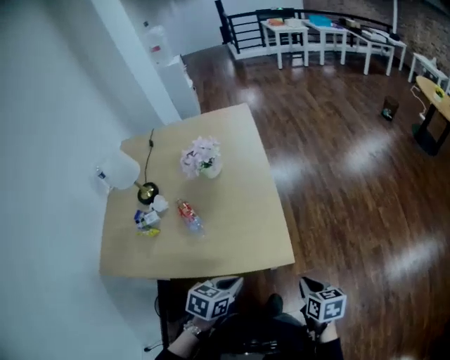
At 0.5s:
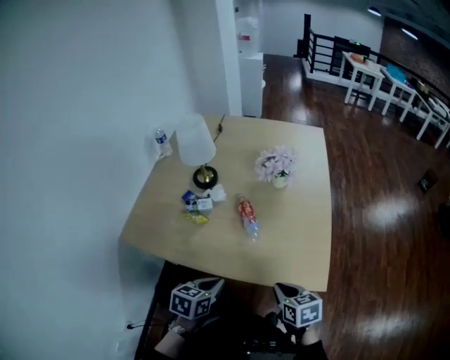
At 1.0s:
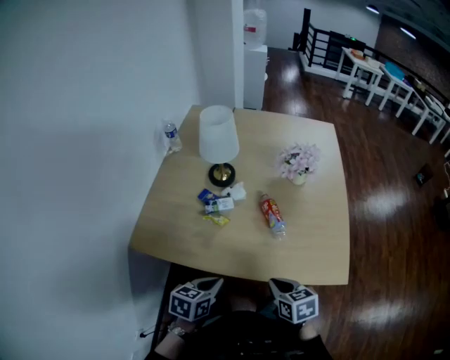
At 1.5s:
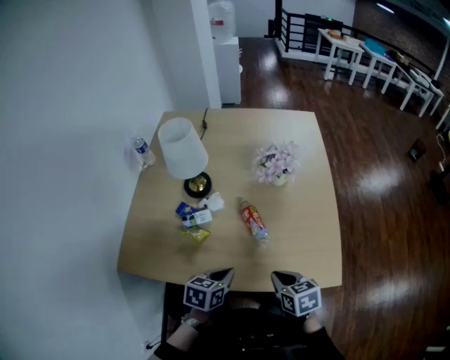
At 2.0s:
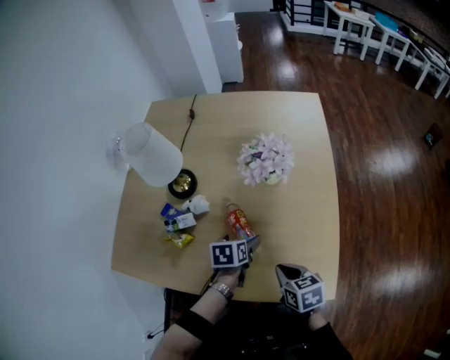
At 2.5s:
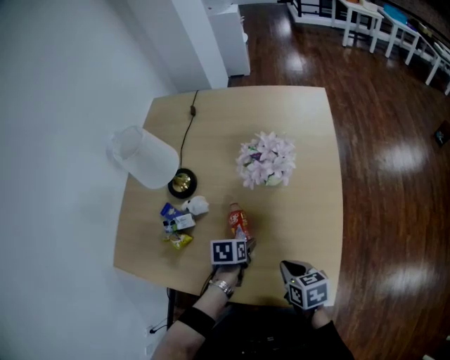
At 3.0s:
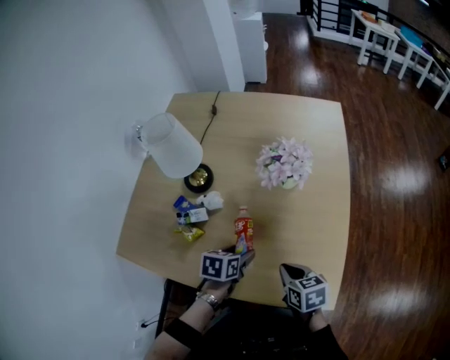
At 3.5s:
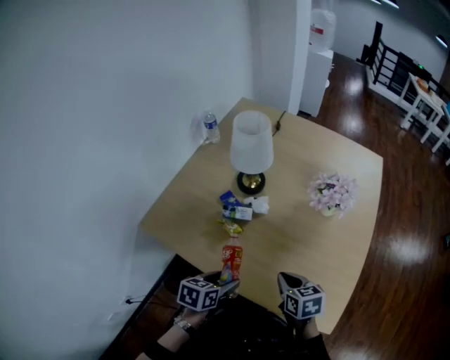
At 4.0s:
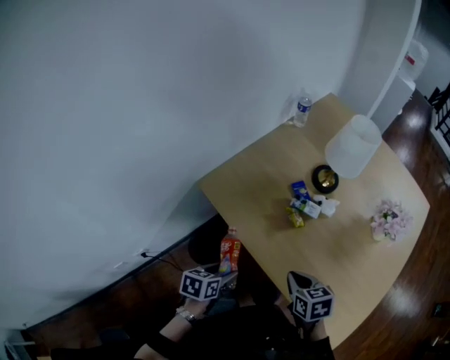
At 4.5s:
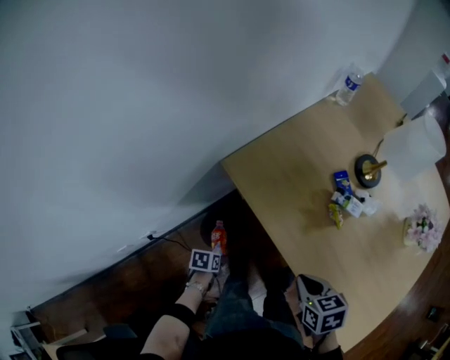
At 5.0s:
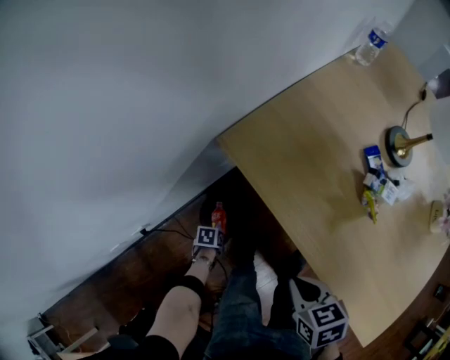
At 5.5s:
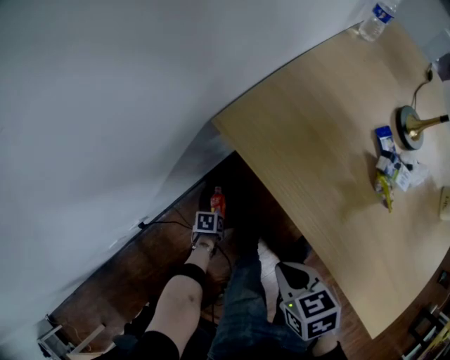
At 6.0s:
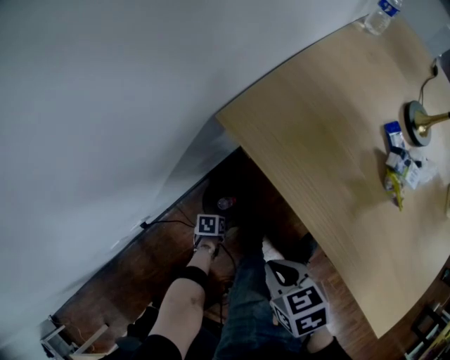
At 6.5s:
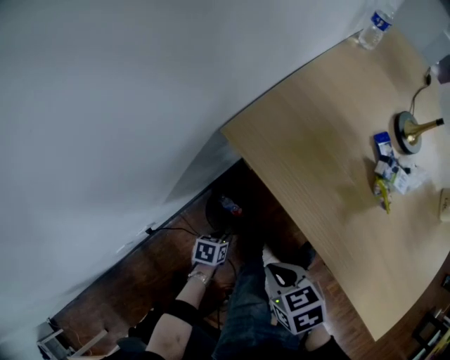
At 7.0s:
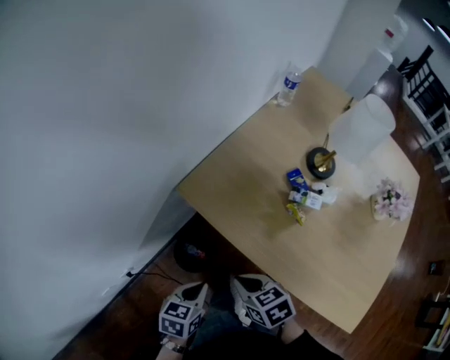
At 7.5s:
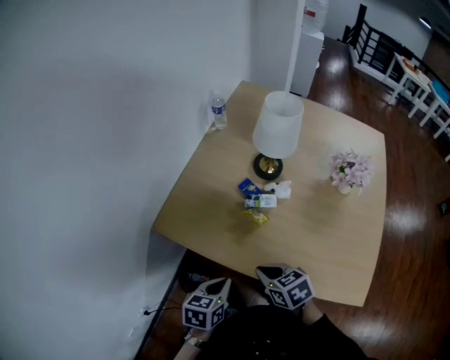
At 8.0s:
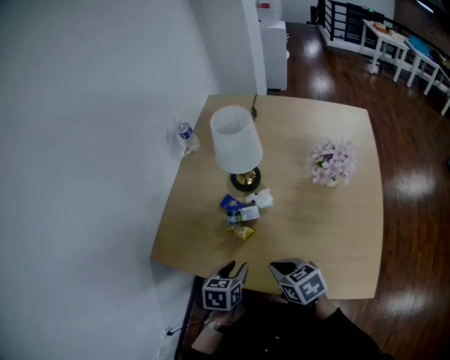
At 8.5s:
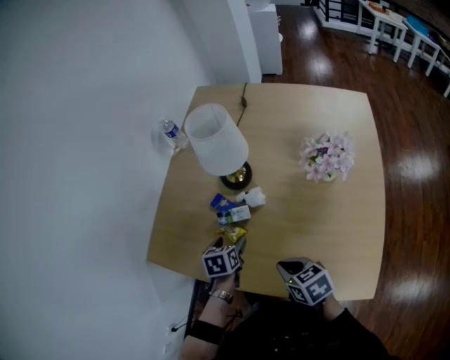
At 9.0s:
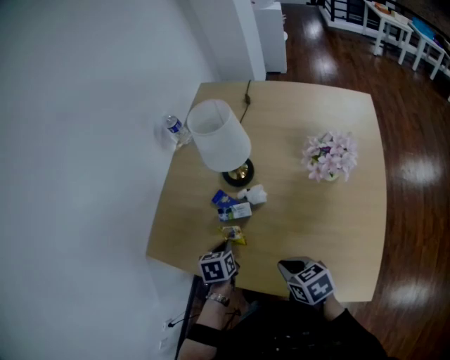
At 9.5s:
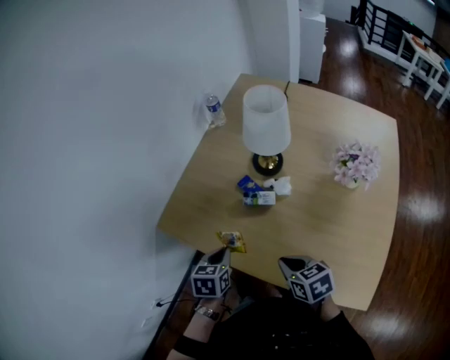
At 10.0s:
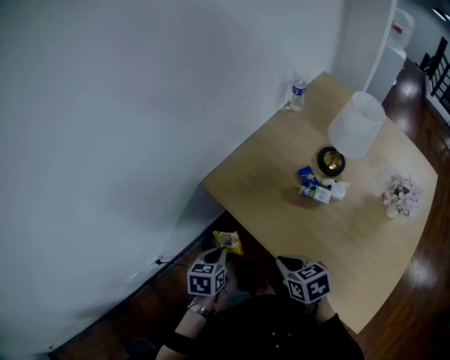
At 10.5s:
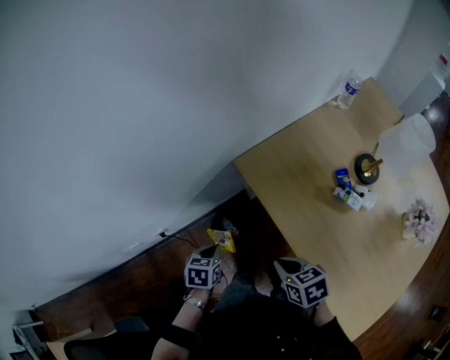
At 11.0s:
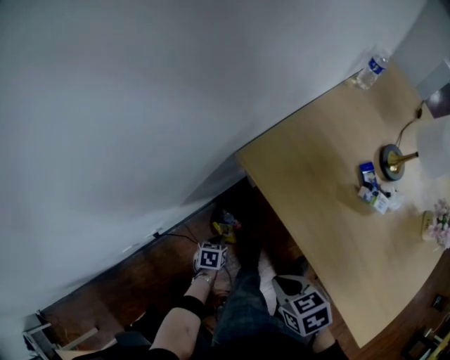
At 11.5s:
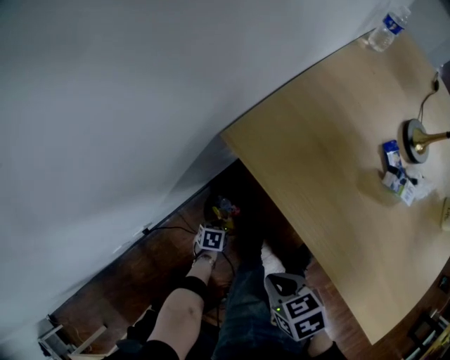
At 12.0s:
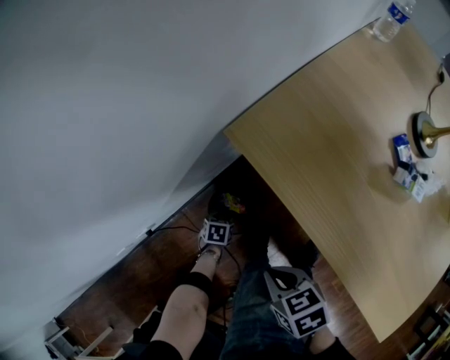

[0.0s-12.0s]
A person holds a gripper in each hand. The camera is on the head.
0.0s to 2.0s: The right gripper moves some 35 cm, and swivels roughly 30 degrees. Meanwhile the left gripper changes place by some 35 cm, changes its angle by some 40 degrees, and opens its fingers.
2.0s to 4.0s: The right gripper changes place by approximately 25 cm, and changes its angle by about 40 degrees. Meanwhile the left gripper swings up and down, some 10 cm each way, with 2 reversals, and rotates some 30 degrees.
4.0s to 6.0s: The left gripper is displaced downward by about 50 cm, and turns by about 30 degrees; the right gripper ends up approximately 30 cm from where it was, and rotates about 20 degrees.
6.0s to 8.0s: The left gripper travels upward by about 50 cm, rotates around the line of its fingers by approximately 40 degrees, clockwise from behind, and closes its fingers. Meanwhile the right gripper shifts by approximately 35 cm, and changes its angle by about 30 degrees.
8.0s to 10.0s: The right gripper shifts by some 15 cm, and rotates approximately 20 degrees; the left gripper changes place by about 25 cm, swivels about 30 degrees, and opens and closes again.
10.0s to 12.0s: The right gripper travels downward by approximately 15 cm, and rotates approximately 20 degrees; the left gripper goes some 40 cm downward, and changes its angle by approximately 30 degrees.

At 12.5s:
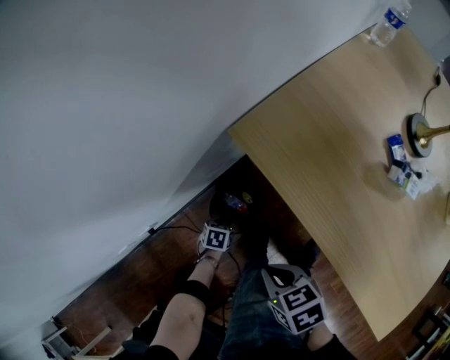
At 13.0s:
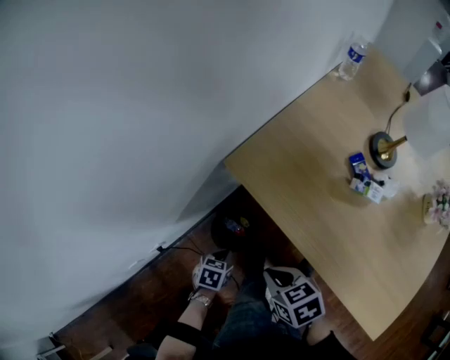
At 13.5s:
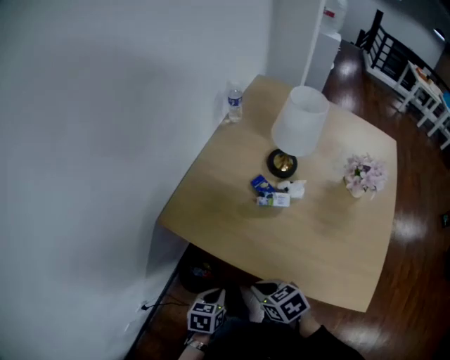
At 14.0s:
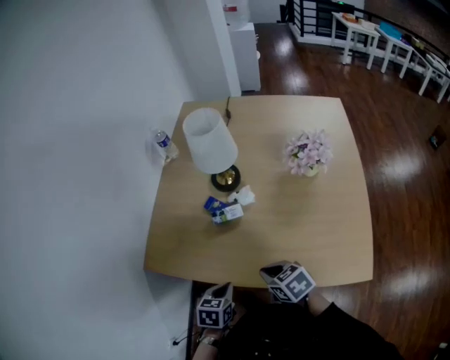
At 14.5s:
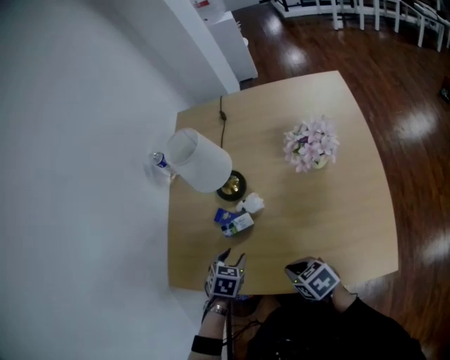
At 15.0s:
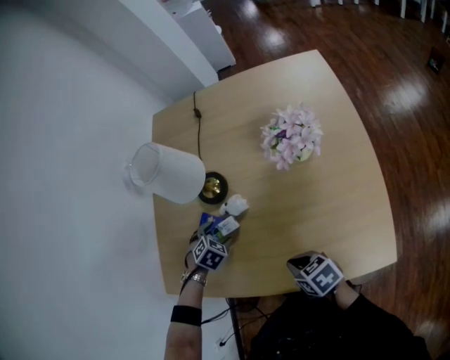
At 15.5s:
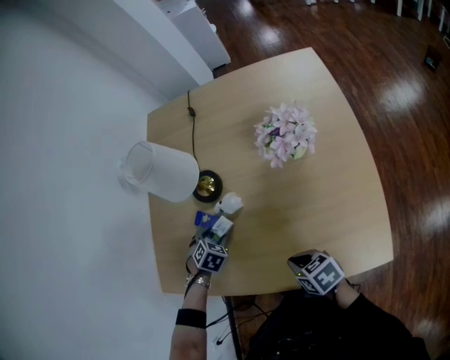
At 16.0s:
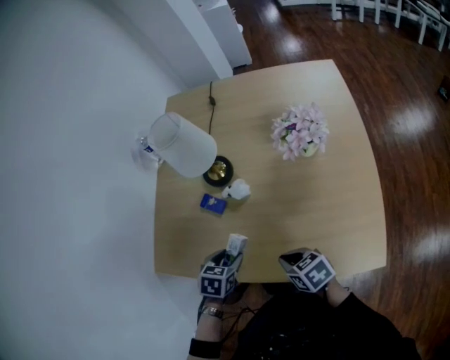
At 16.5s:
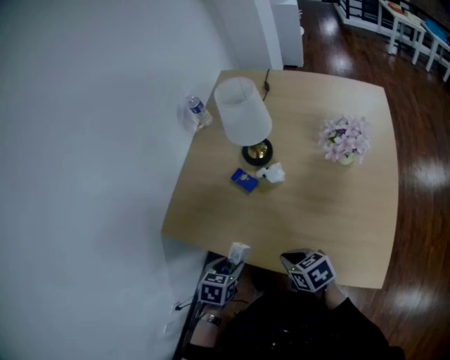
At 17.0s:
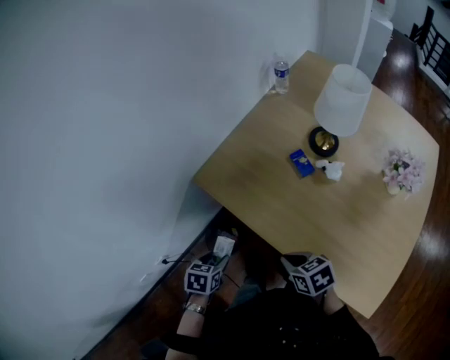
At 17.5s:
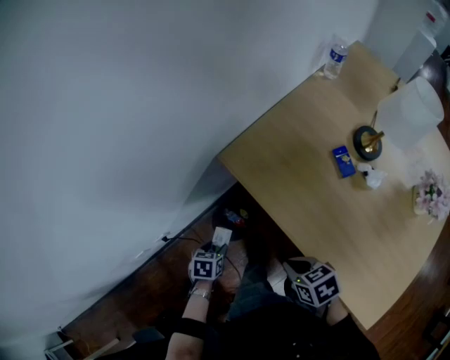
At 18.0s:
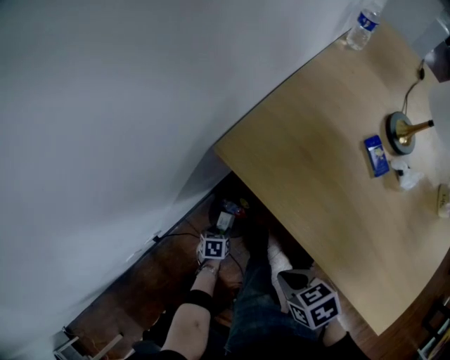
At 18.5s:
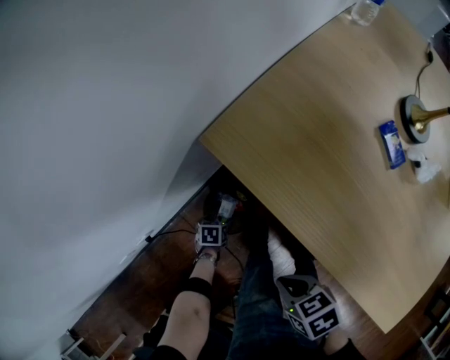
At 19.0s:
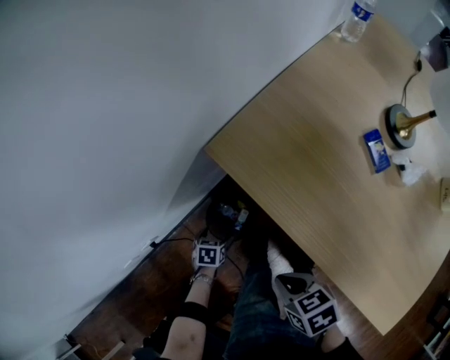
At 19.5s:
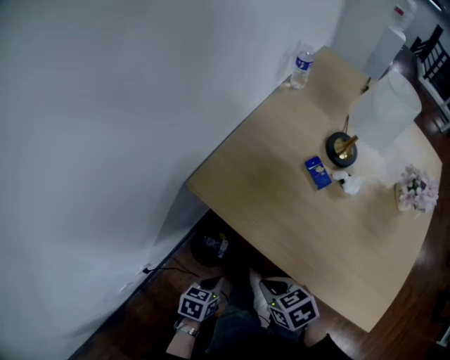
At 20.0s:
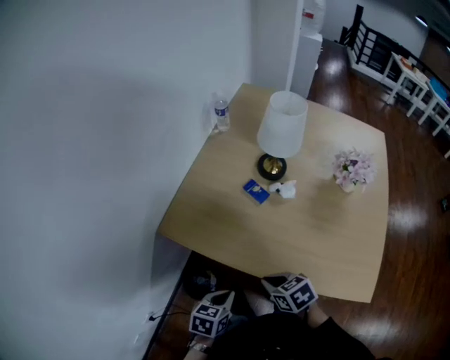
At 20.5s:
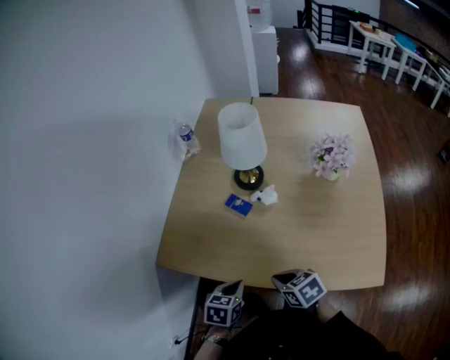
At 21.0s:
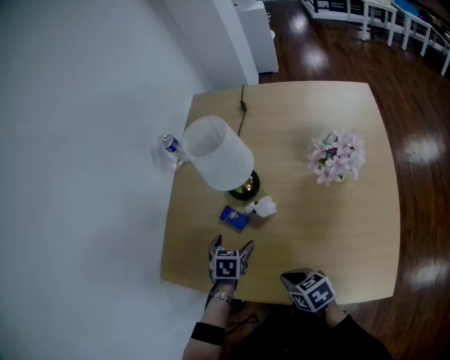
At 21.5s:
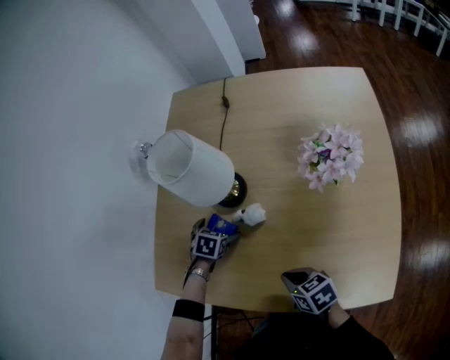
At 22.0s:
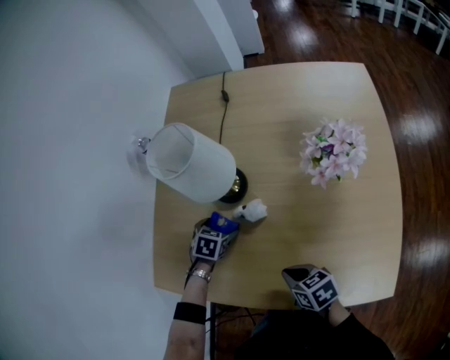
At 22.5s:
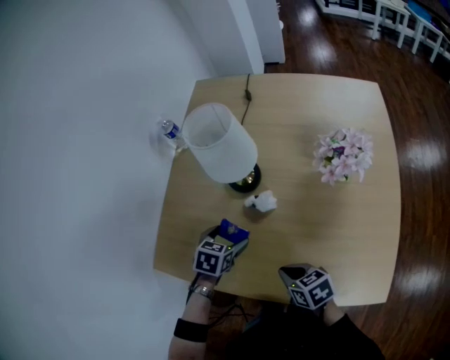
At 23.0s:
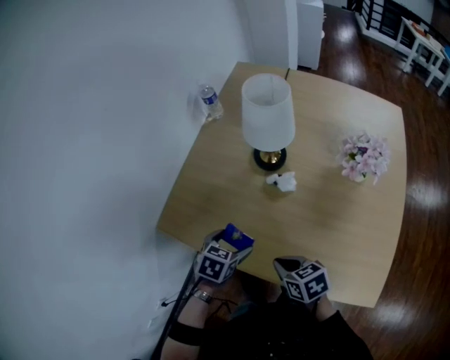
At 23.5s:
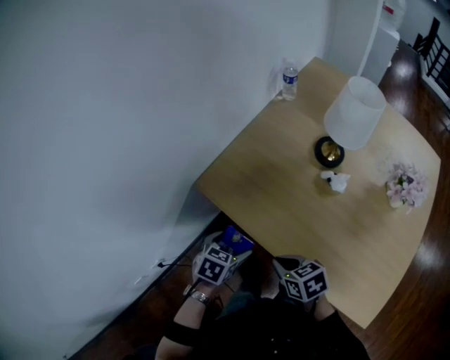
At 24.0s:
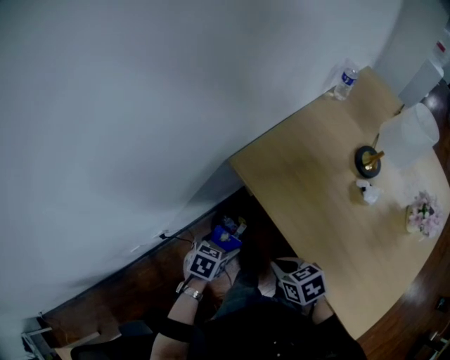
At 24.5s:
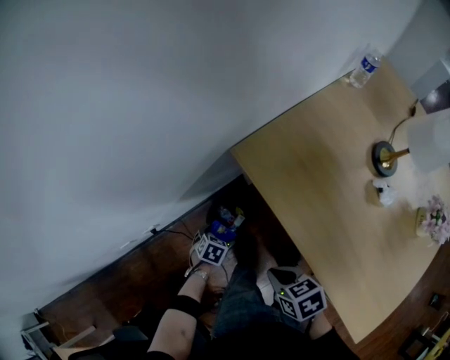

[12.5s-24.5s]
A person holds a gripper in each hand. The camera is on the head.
12.5s to 14.5s: The right gripper moves roughly 35 cm, and changes its angle by some 40 degrees; the left gripper changes place by approximately 60 cm, and rolls clockwise, seen from behind, by approximately 60 degrees.
14.5s to 16.5s: The left gripper heads backward and to the left, covering roughly 15 cm, and swivels roughly 30 degrees. The right gripper shifts by approximately 5 cm.
16.5s to 18.5s: The left gripper shifts roughly 40 cm downward, and twists some 40 degrees counterclockwise, seen from behind, while the right gripper ends up roughly 30 cm from where it was, and turns by roughly 40 degrees.
18.5s to 20.5s: The left gripper shifts about 40 cm upward, rotates around the line of its fingers by about 40 degrees, clockwise from behind, and closes its fingers; the right gripper shifts by roughly 25 cm, and swivels roughly 40 degrees.
20.5s to 22.5s: The left gripper is displaced forward and to the right by some 20 cm, and opens up; the right gripper is displaced to the right and forward by some 10 cm.
22.5s to 24.5s: The left gripper shifts by approximately 50 cm, and swivels about 40 degrees; the right gripper ends up roughly 30 cm from where it was, and changes its angle by approximately 40 degrees.

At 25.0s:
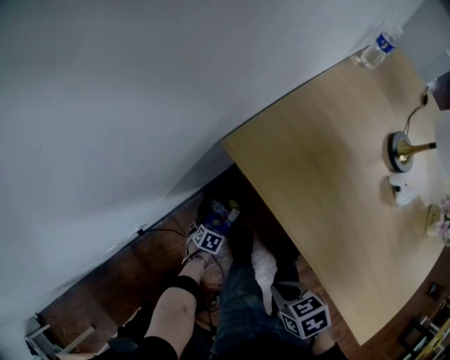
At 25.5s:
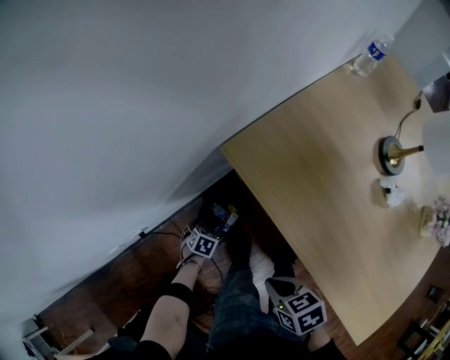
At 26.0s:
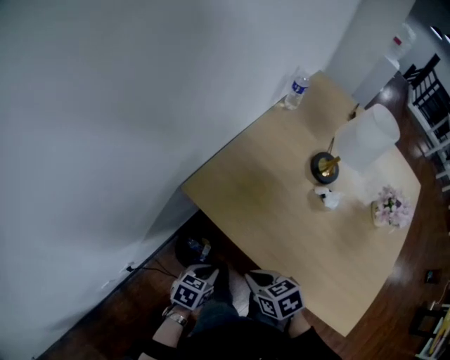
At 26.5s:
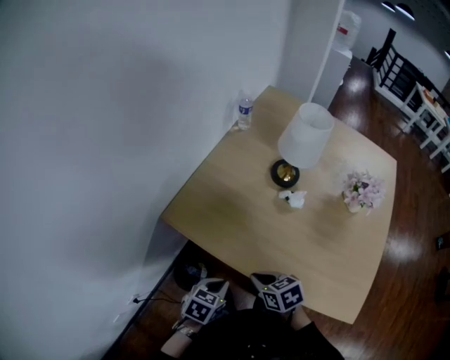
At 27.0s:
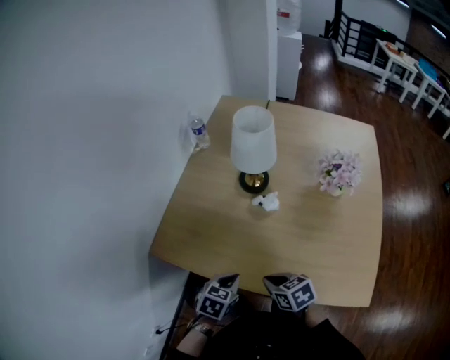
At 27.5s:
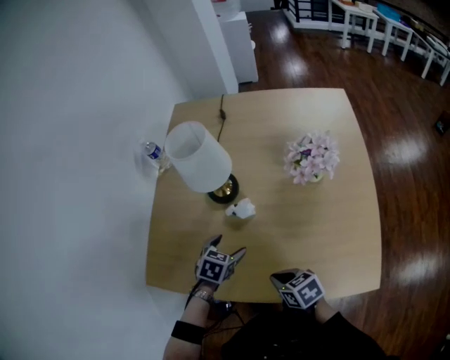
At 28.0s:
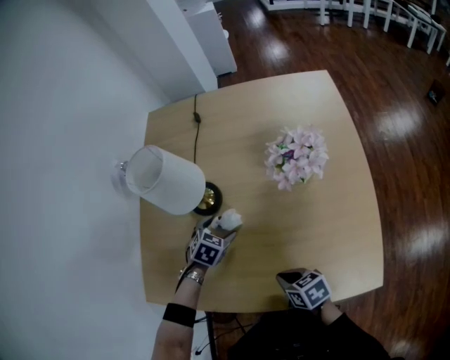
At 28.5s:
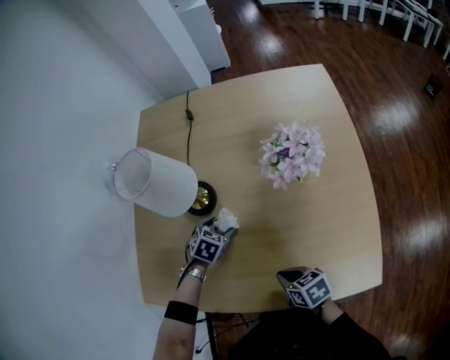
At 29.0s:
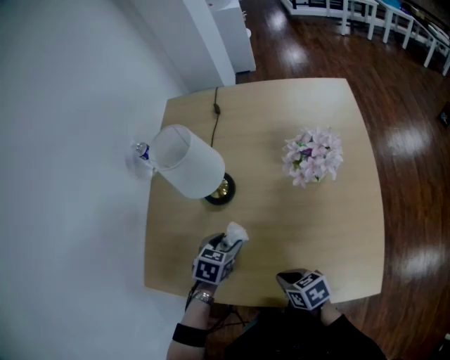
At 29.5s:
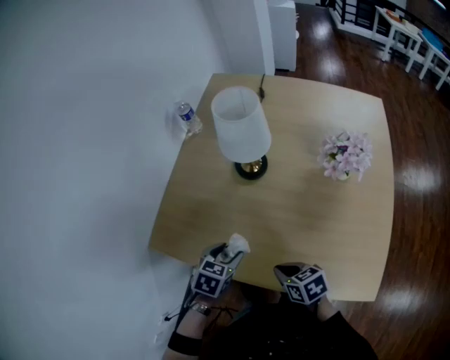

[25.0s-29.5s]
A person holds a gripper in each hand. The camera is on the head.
25.0s to 27.0s: The left gripper shifts some 40 cm upward, turns by about 40 degrees, and closes up, while the right gripper shifts by some 25 cm, and swivels about 40 degrees.
27.0s to 29.5s: The right gripper reaches approximately 15 cm to the right, then returns; the left gripper travels forward and back again, approximately 25 cm each way, and opens up.
